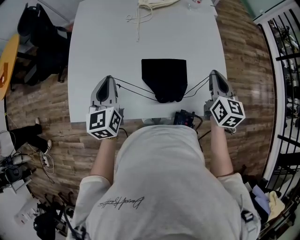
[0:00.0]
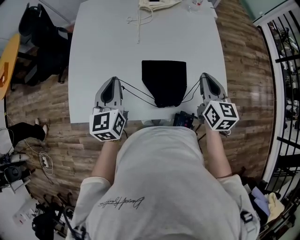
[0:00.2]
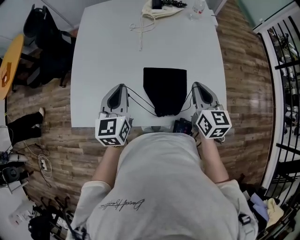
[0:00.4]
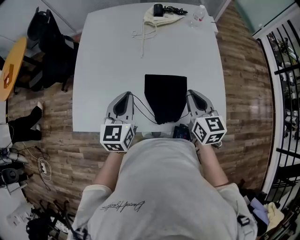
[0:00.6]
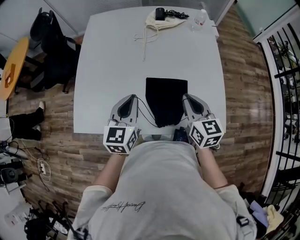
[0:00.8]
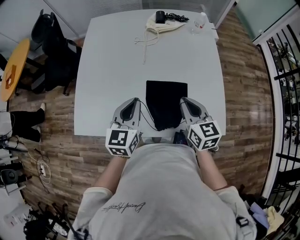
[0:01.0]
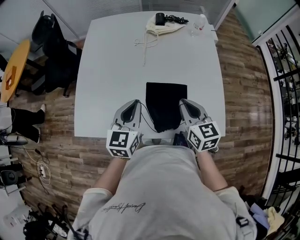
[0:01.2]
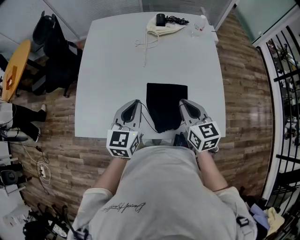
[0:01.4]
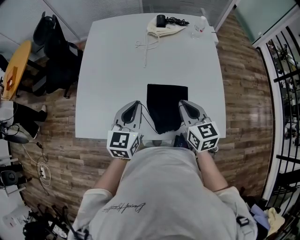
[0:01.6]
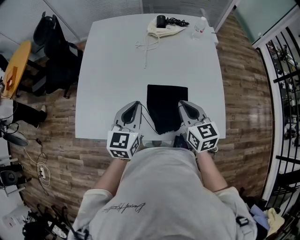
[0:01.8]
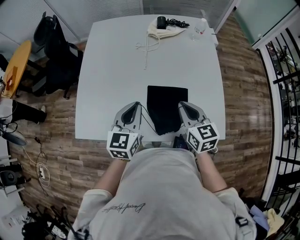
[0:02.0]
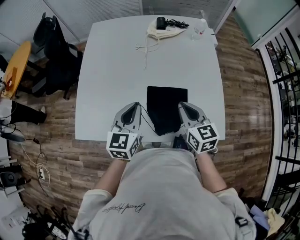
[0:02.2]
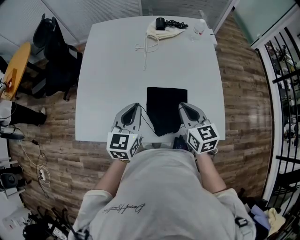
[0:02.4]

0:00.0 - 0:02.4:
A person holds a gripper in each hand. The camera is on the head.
0:00.0 - 0:01.2: The right gripper is displaced to the left by some 15 cm, and turns by roughly 20 degrees, while the left gripper heads to the right, covering roughly 10 cm.
0:01.2 - 0:02.4: Both grippers stay about where they are.

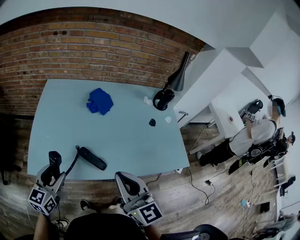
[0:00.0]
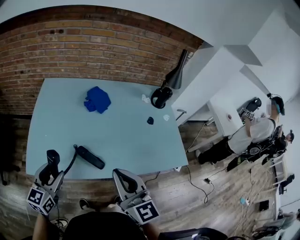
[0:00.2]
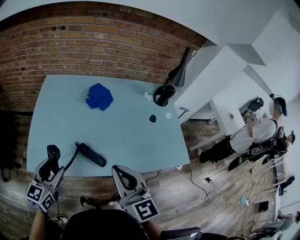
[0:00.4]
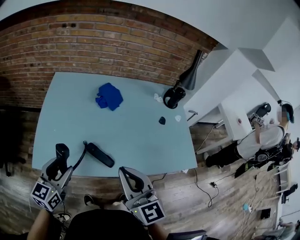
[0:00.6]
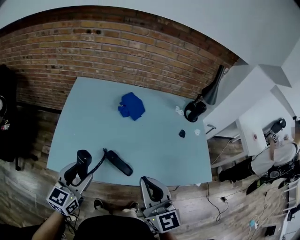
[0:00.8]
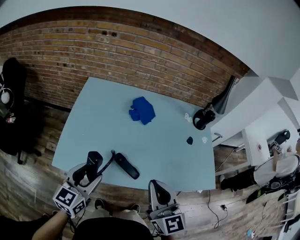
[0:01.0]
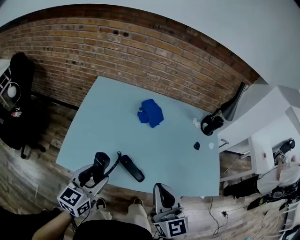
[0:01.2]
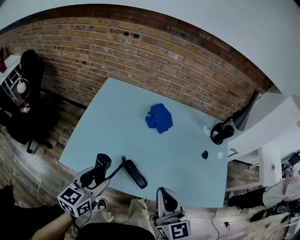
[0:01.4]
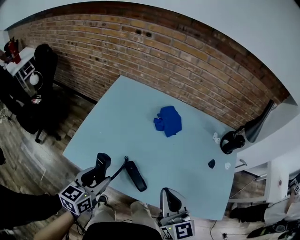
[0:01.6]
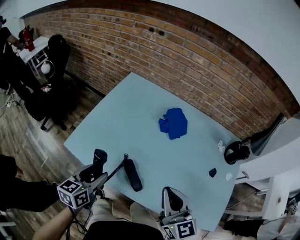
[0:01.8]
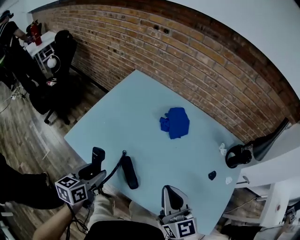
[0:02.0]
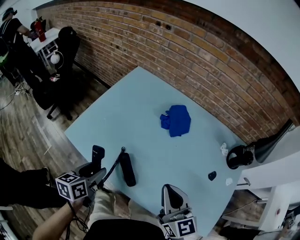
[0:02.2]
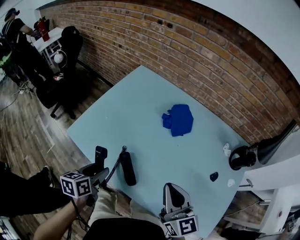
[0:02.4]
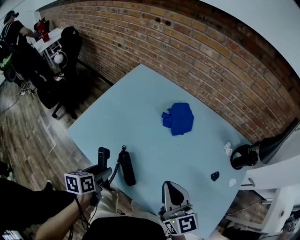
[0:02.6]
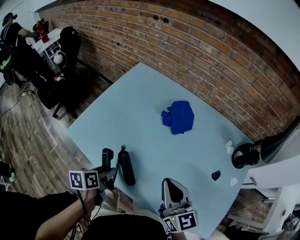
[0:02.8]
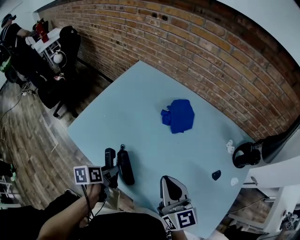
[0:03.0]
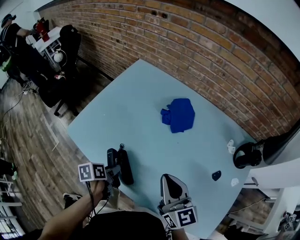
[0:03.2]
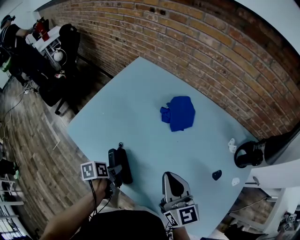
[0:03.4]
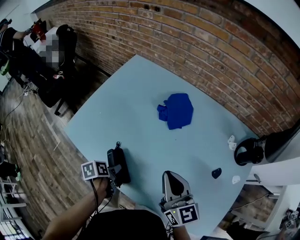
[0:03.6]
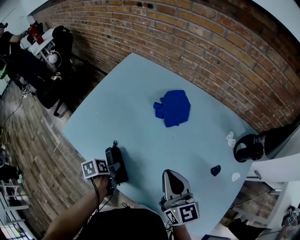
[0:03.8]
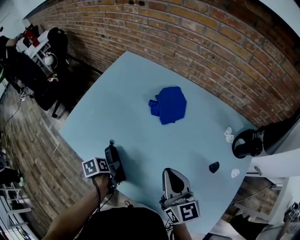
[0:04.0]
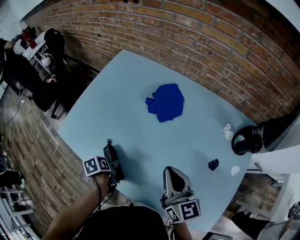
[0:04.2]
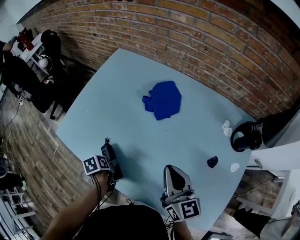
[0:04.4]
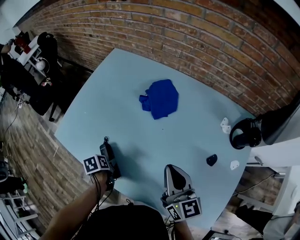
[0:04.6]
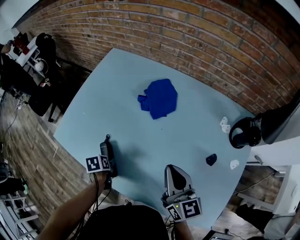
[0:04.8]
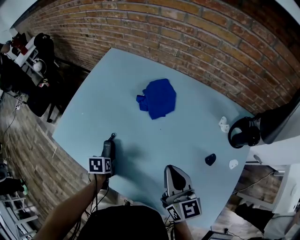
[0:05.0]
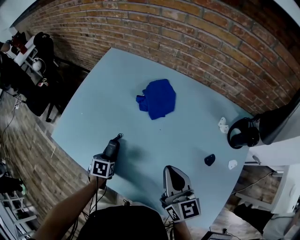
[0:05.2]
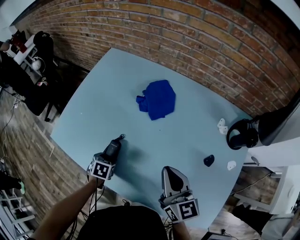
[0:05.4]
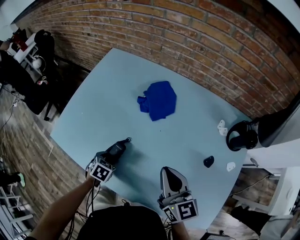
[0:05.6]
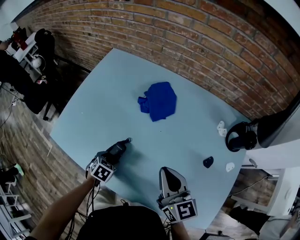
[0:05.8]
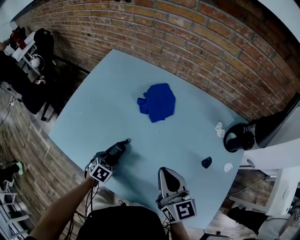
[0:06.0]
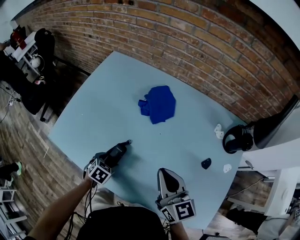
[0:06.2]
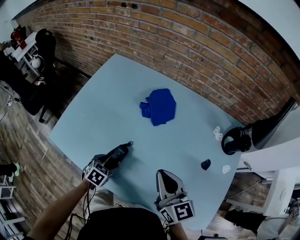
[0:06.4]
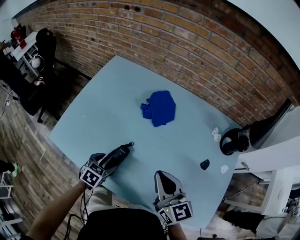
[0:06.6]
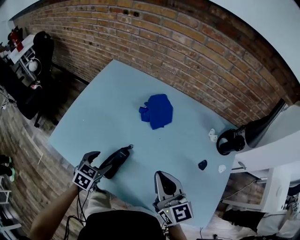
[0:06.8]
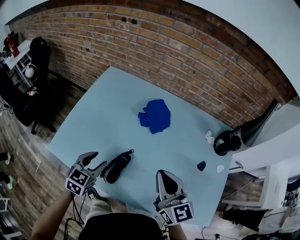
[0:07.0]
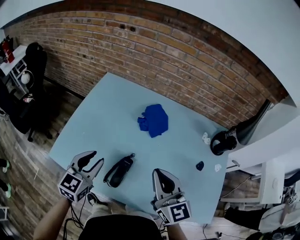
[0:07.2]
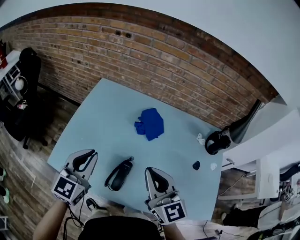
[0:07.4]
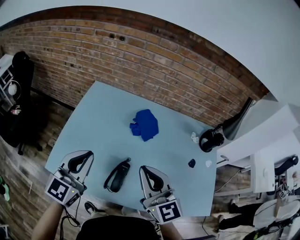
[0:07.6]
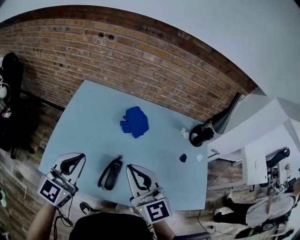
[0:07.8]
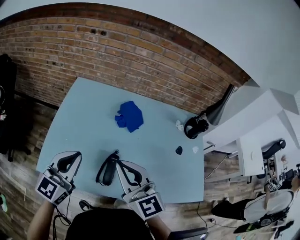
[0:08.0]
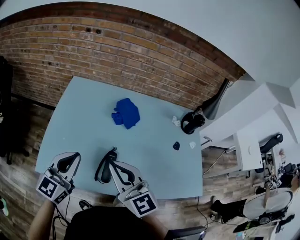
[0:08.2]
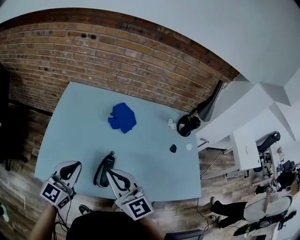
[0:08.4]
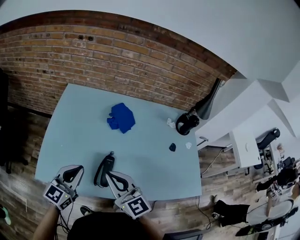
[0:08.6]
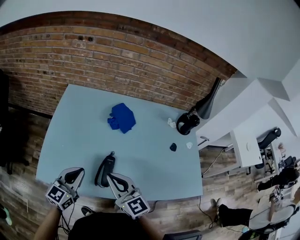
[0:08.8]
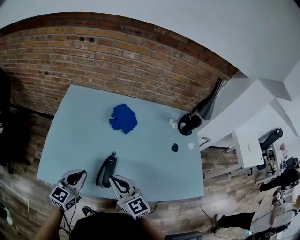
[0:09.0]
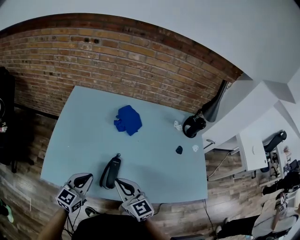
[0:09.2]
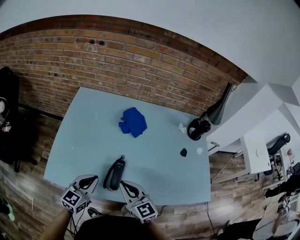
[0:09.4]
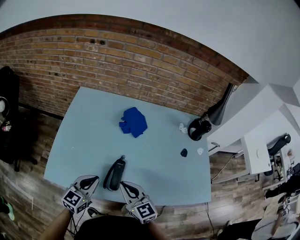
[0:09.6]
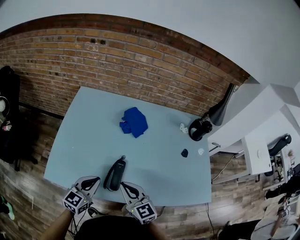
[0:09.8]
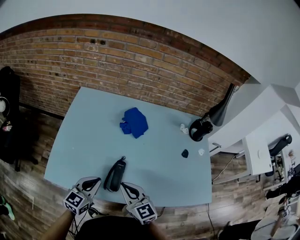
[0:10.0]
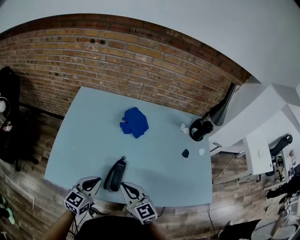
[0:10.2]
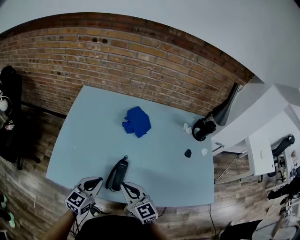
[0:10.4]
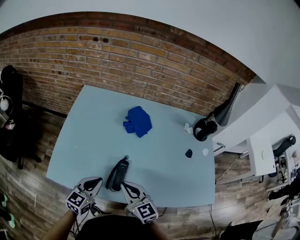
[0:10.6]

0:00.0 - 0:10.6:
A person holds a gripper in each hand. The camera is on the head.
0:00.0 - 0:01.6: The left gripper swivels some 20 degrees. The right gripper shifts approximately 10 cm forward.
0:01.6 - 0:03.0: The right gripper goes roughly 10 cm to the right and forward; the left gripper travels downward and to the right by roughly 15 cm, and rotates around the line of its fingers by about 40 degrees, counterclockwise from behind.
0:03.0 - 0:04.6: The left gripper shifts about 10 cm downward, and turns by about 20 degrees. The right gripper ends up approximately 10 cm from where it was.
0:04.6 - 0:06.0: The left gripper changes place by about 5 cm, and twists some 60 degrees clockwise, seen from behind.
0:06.0 - 0:07.6: The right gripper shifts some 20 cm to the left and upward, and swivels some 20 degrees; the left gripper moves upward, approximately 35 cm, tips its fingers upward by some 70 degrees, and closes up.
0:07.6 - 0:09.0: The right gripper travels downward, backward and to the left by approximately 15 cm, while the left gripper is displaced downward by some 15 cm.
0:09.0 - 0:10.6: There are only small adjustments of the grippers.

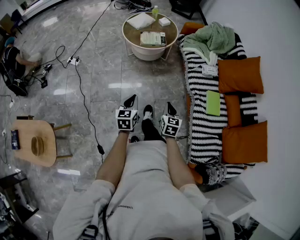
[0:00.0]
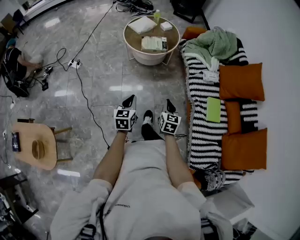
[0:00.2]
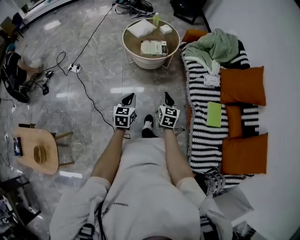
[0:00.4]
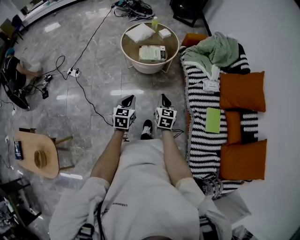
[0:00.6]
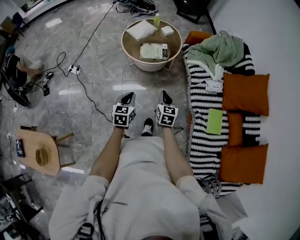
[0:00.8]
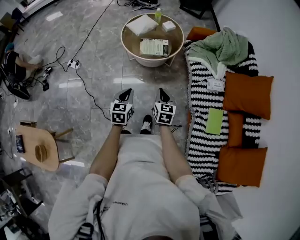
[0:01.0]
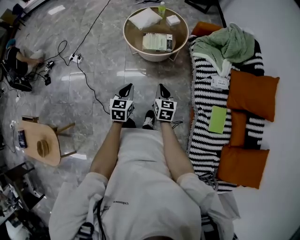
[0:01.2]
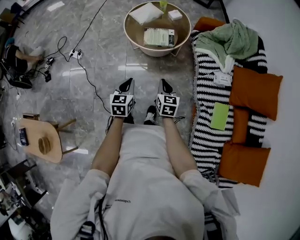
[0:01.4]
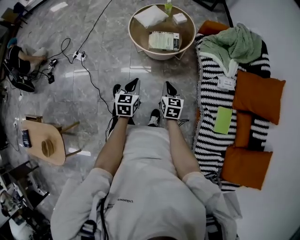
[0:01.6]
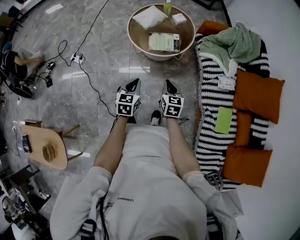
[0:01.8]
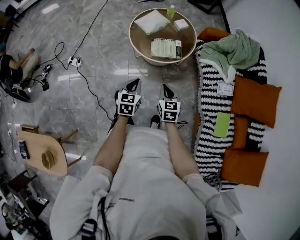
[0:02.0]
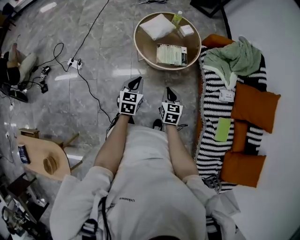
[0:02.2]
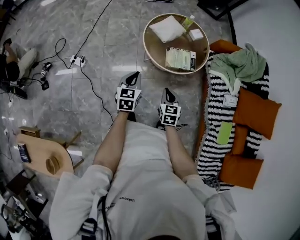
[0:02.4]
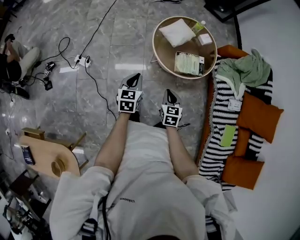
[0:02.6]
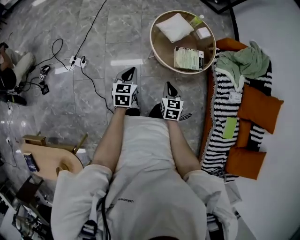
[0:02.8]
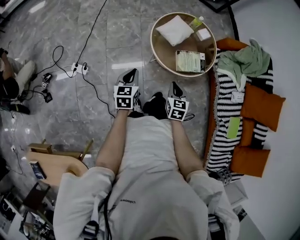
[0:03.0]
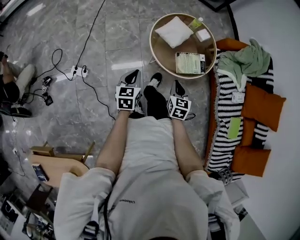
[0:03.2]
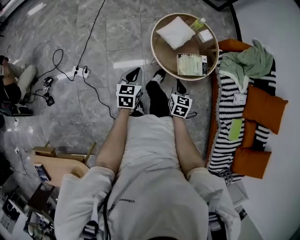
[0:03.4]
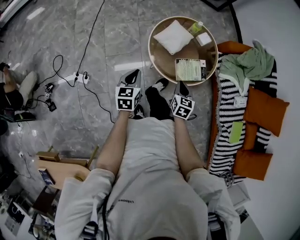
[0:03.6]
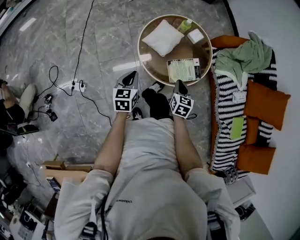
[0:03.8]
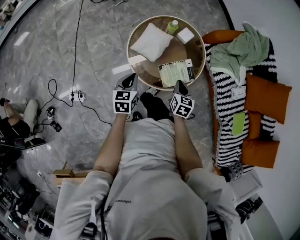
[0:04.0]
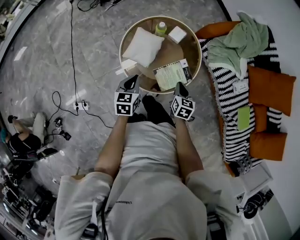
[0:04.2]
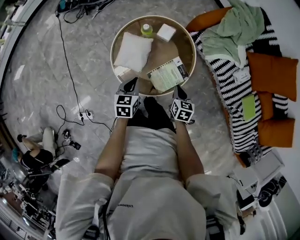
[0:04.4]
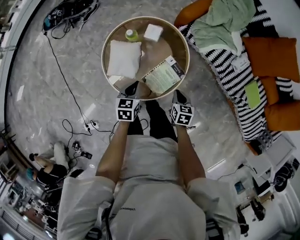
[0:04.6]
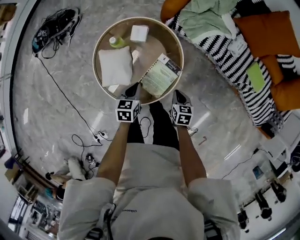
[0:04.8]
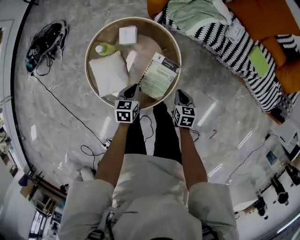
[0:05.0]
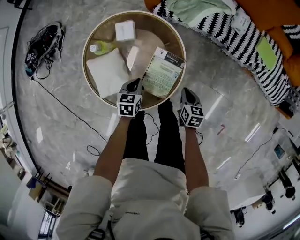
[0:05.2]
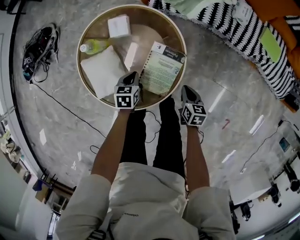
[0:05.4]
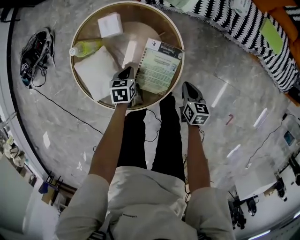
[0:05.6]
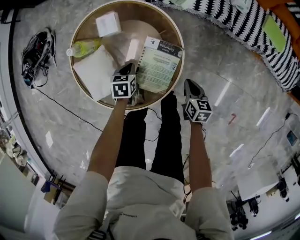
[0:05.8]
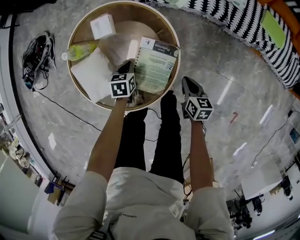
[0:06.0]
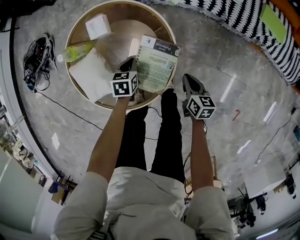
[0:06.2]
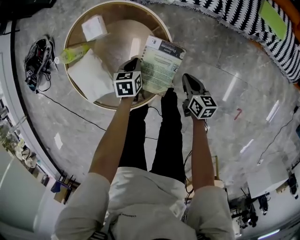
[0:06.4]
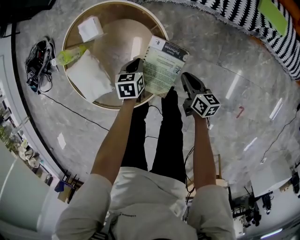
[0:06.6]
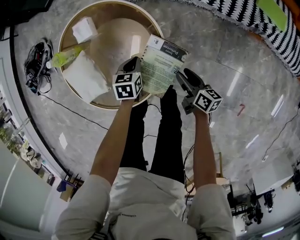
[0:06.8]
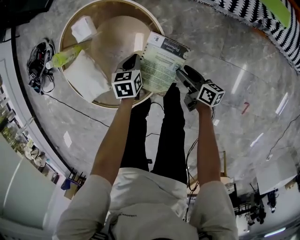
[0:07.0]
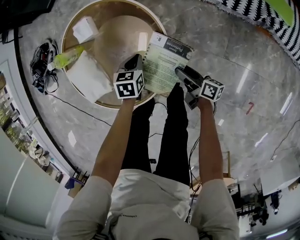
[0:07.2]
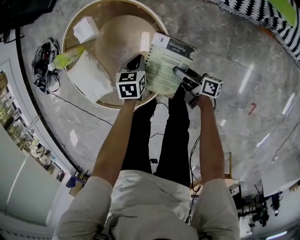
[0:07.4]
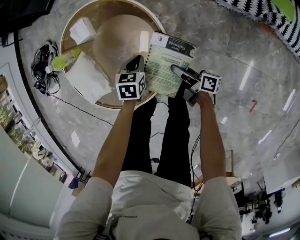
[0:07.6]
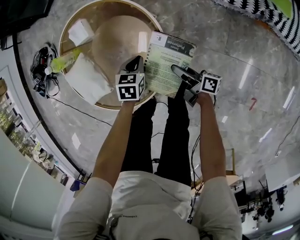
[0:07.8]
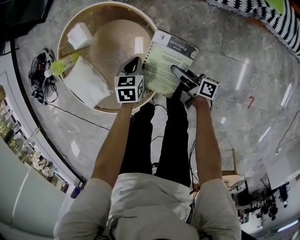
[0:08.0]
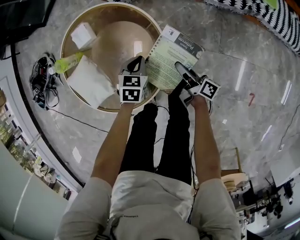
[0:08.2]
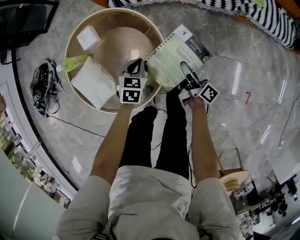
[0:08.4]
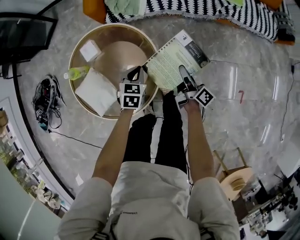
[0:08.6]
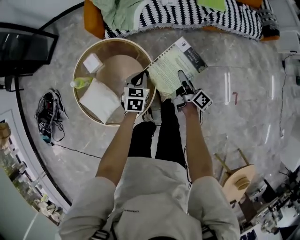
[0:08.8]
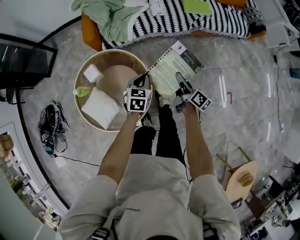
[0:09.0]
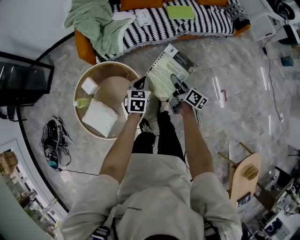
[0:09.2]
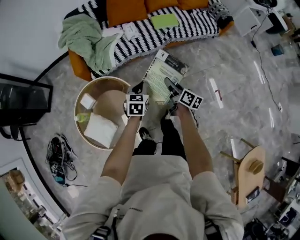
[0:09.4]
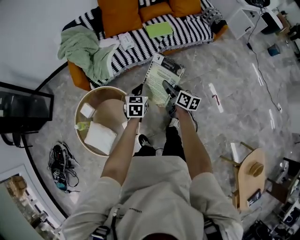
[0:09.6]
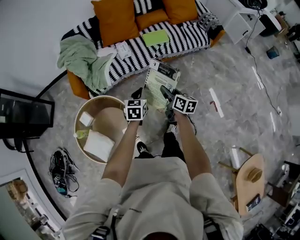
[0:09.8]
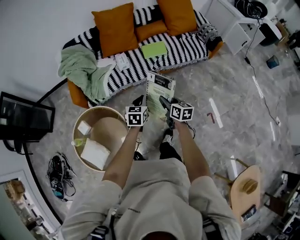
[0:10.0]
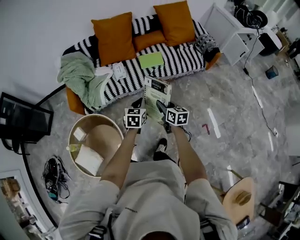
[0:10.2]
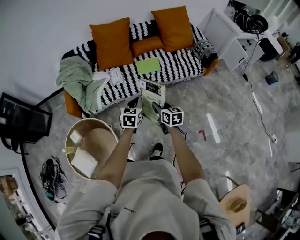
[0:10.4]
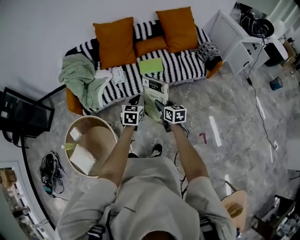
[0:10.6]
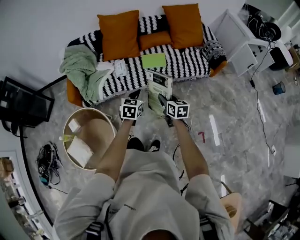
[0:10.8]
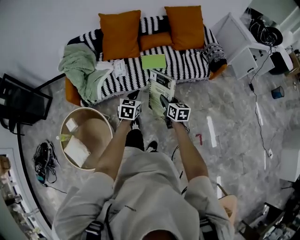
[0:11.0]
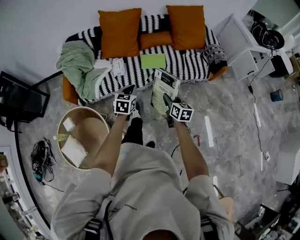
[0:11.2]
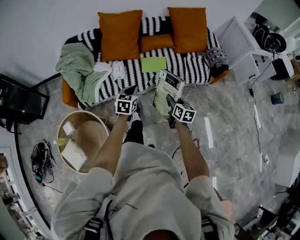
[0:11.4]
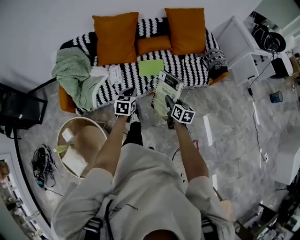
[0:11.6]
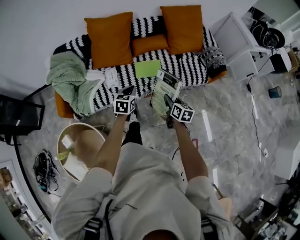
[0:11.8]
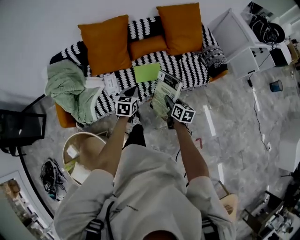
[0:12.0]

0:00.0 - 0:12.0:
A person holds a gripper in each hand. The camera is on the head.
0:00.0 - 0:01.6: Both grippers travel together forward, about 30 cm.
0:01.6 - 0:03.0: Both grippers travel together to the left and forward, about 40 cm.
0:03.0 - 0:04.4: The left gripper changes place by about 40 cm, and rotates about 30 degrees. The right gripper changes place by approximately 30 cm, and swivels roughly 40 degrees.
0:04.4 - 0:06.0: Both grippers travel together downward, some 25 cm. The left gripper swivels some 40 degrees. Meanwhile the right gripper swivels roughly 40 degrees.
0:06.0 - 0:07.6: The left gripper shifts roughly 10 cm to the right. The right gripper is displaced downward by roughly 5 cm, tips its fingers upward by approximately 30 degrees, and opens.
0:07.6 - 0:09.0: Both grippers travel together upward, roughly 25 cm. The right gripper swivels some 60 degrees. The left gripper rotates about 30 degrees.
0:09.0 - 0:10.4: The two grippers go some 35 cm to the right, upward and forward. The right gripper changes its angle by roughly 40 degrees.
0:10.4 - 0:12.0: Both grippers move forward, some 25 cm.
